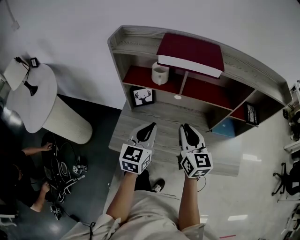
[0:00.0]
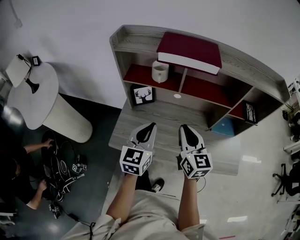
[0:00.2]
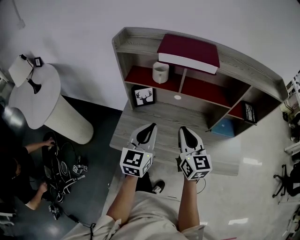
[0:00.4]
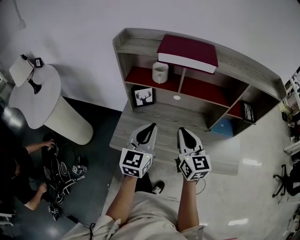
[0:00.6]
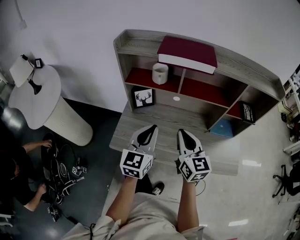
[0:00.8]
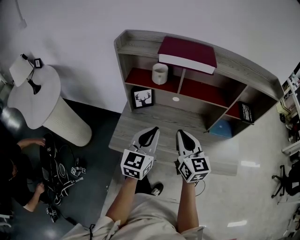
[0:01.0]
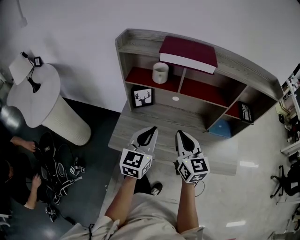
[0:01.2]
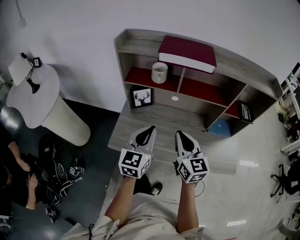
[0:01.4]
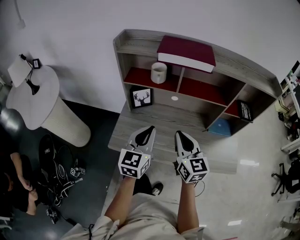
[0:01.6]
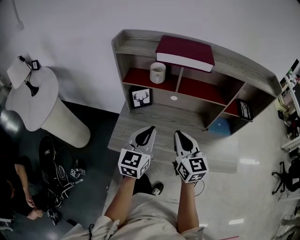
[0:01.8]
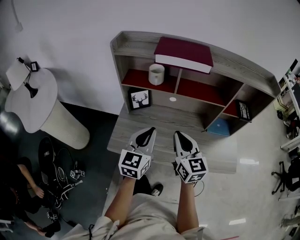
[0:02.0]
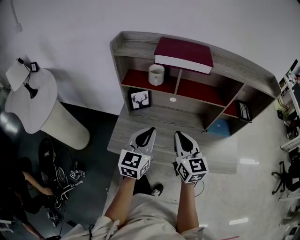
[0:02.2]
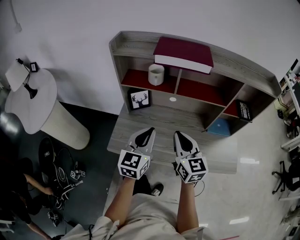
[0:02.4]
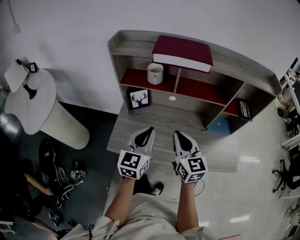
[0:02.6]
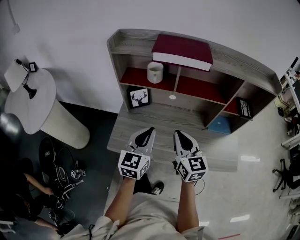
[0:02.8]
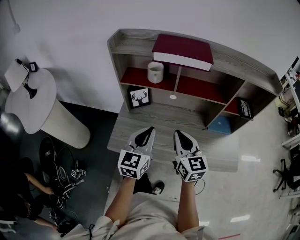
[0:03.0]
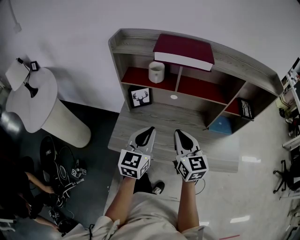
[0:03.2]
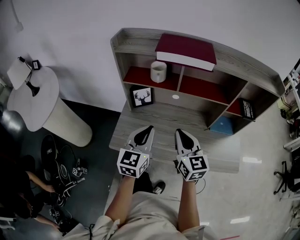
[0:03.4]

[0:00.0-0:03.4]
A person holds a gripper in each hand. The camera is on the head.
0:00.0 to 0:01.6: Both grippers move backward, some 5 cm.
0:01.6 to 0:03.4: The grippers move only a little.

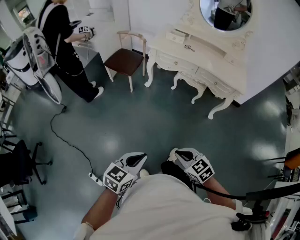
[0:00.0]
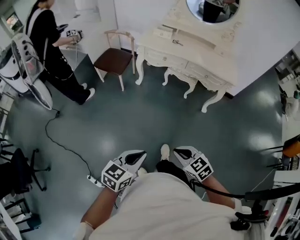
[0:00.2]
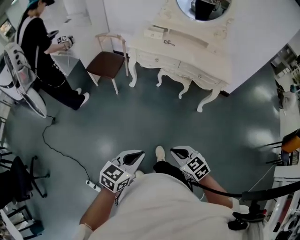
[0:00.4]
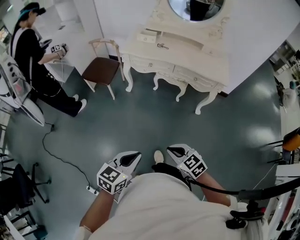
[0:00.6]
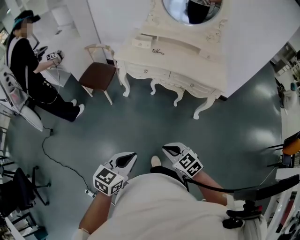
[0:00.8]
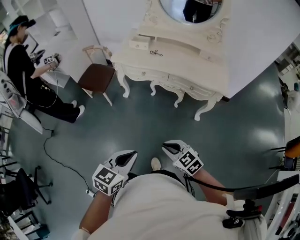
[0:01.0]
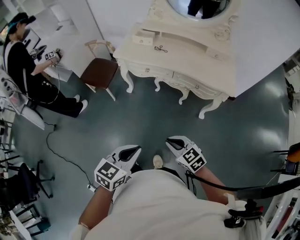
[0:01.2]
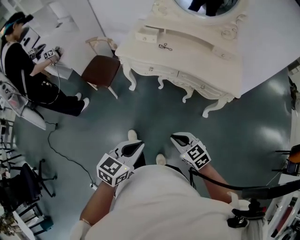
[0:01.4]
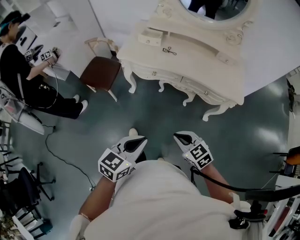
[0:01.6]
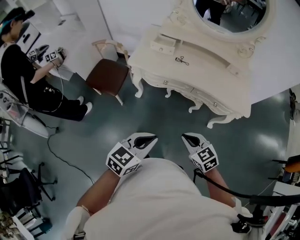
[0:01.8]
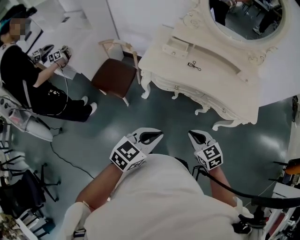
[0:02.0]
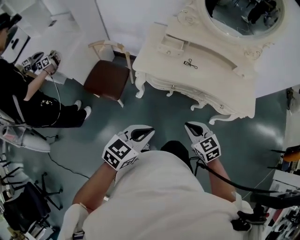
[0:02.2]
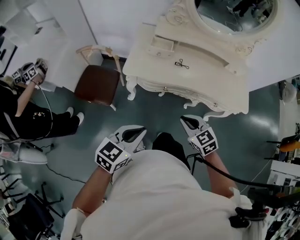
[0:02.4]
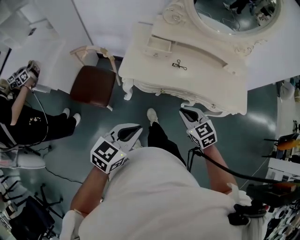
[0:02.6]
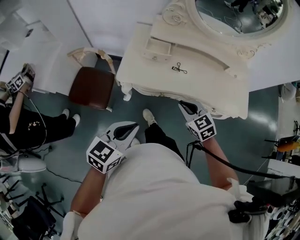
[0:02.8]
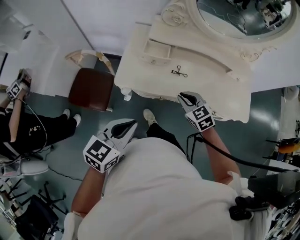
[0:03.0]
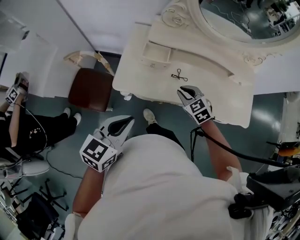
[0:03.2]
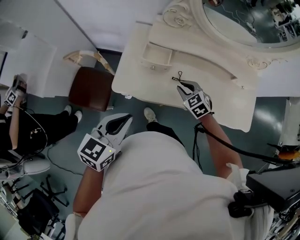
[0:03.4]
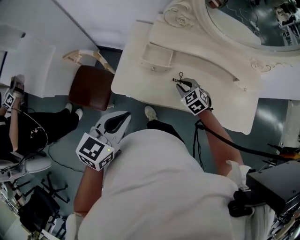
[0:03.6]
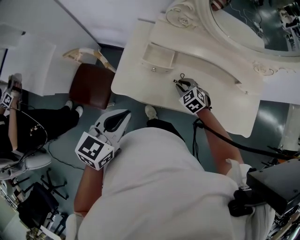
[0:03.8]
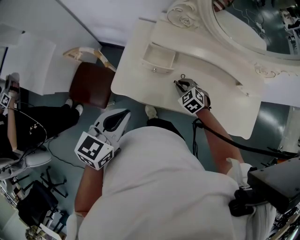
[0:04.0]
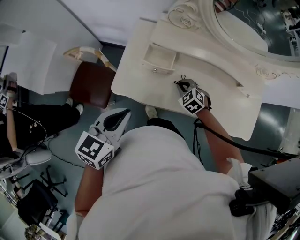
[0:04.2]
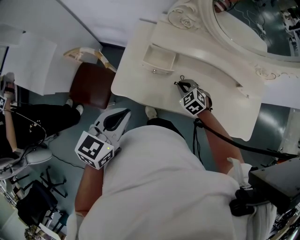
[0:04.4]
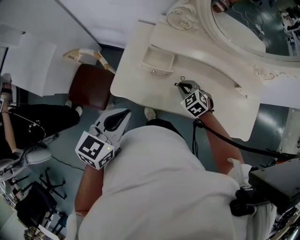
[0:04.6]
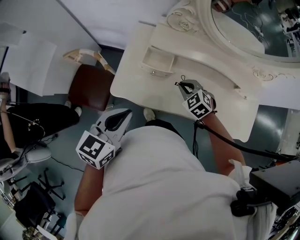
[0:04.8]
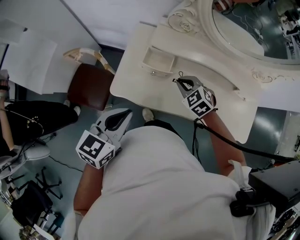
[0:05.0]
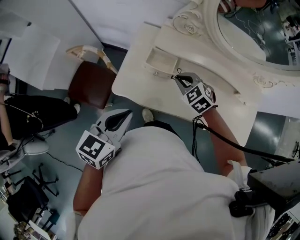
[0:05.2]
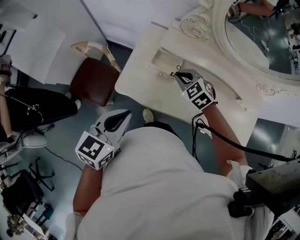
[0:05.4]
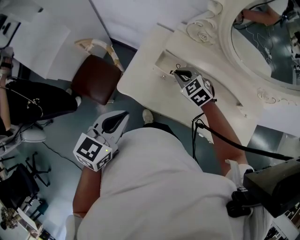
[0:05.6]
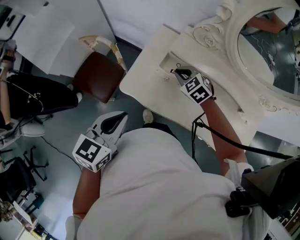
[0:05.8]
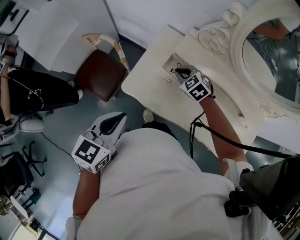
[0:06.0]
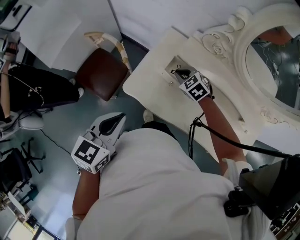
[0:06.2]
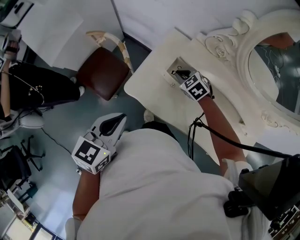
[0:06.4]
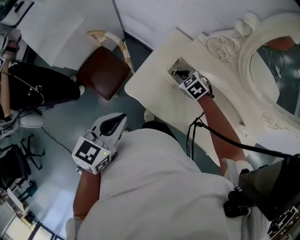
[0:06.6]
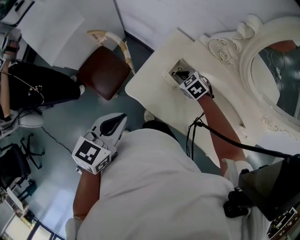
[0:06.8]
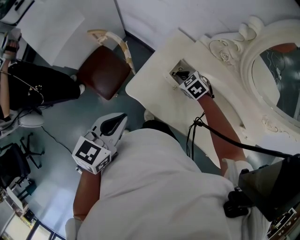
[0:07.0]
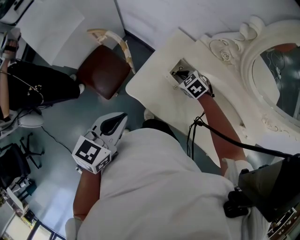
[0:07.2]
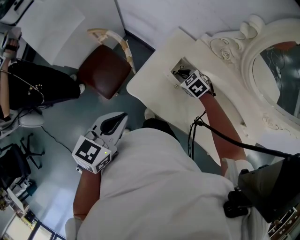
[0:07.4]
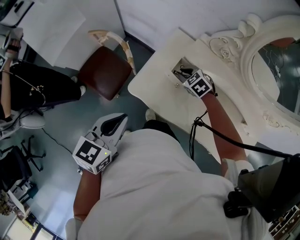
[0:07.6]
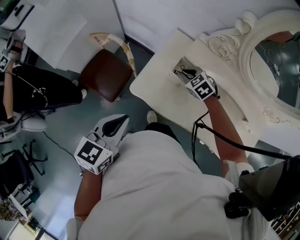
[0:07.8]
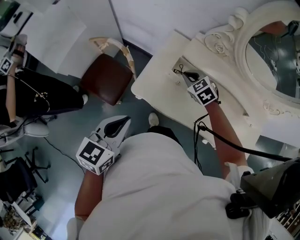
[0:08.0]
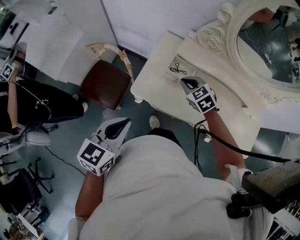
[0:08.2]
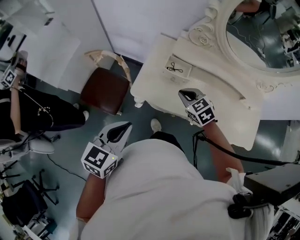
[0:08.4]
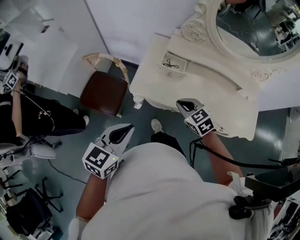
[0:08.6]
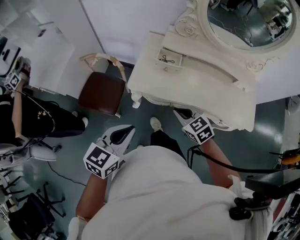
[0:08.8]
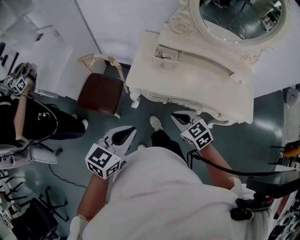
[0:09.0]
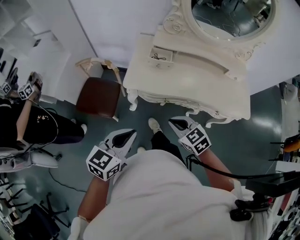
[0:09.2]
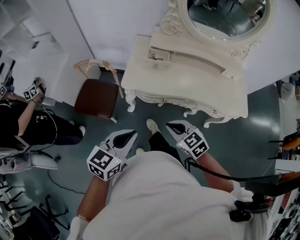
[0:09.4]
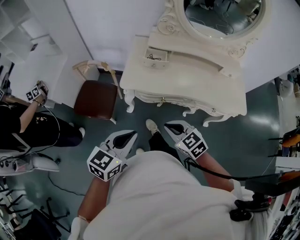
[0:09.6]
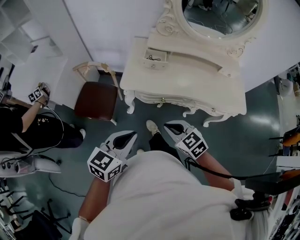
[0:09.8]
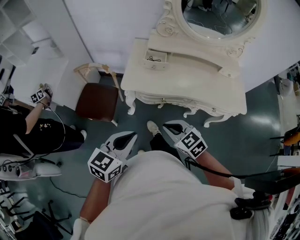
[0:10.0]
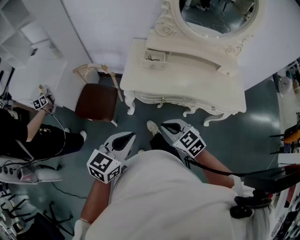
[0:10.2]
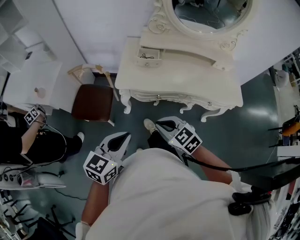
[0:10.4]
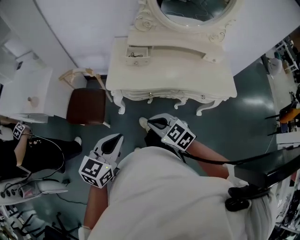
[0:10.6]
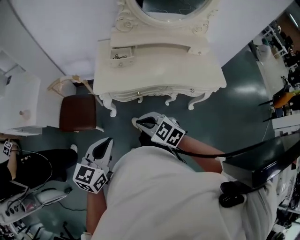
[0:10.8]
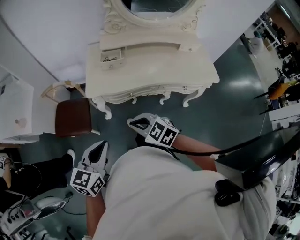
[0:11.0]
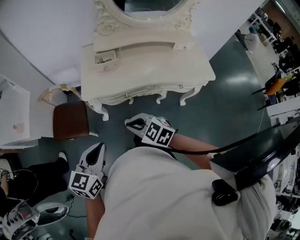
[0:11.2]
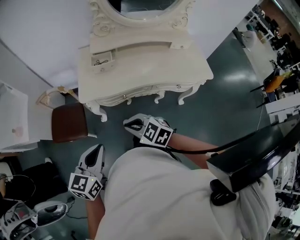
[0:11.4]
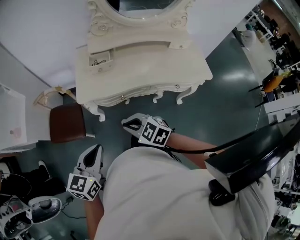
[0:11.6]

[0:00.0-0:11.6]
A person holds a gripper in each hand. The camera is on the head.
0:00.0 to 0:01.4: The grippers both shift forward and to the right by some 35 cm.
0:01.4 to 0:02.8: The pair of grippers is taken forward and to the left, roughly 40 cm.
0:02.8 to 0:04.4: The right gripper heads forward and downward, covering roughly 30 cm, and swivels about 30 degrees; the left gripper travels forward by approximately 20 cm.
0:04.4 to 0:05.8: The right gripper goes some 15 cm to the left, forward and upward.
0:05.8 to 0:07.2: The right gripper heads downward, covering approximately 10 cm.
0:07.2 to 0:08.8: The left gripper moves backward, some 20 cm, and changes its angle by about 20 degrees, while the right gripper shifts roughly 35 cm backward, and turns by roughly 30 degrees.
0:08.8 to 0:10.2: The right gripper travels backward by roughly 15 cm. Meanwhile the left gripper is displaced backward by some 10 cm.
0:10.2 to 0:11.6: There are only small adjustments of the grippers.

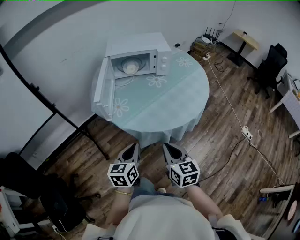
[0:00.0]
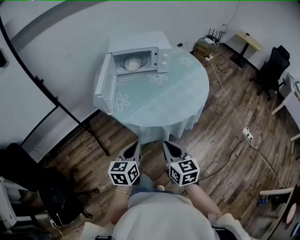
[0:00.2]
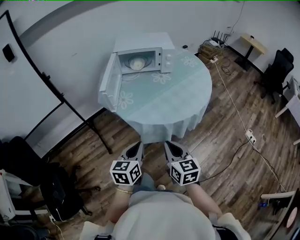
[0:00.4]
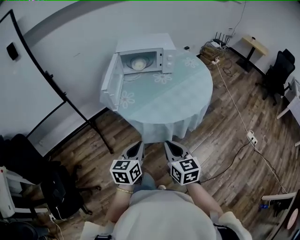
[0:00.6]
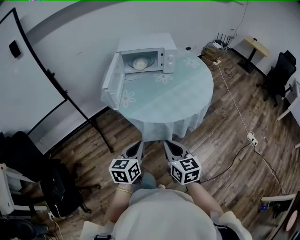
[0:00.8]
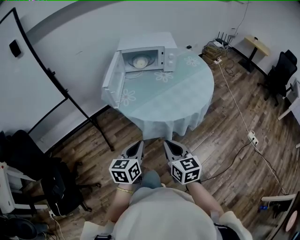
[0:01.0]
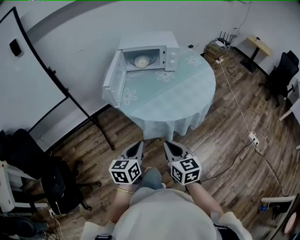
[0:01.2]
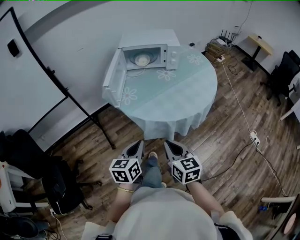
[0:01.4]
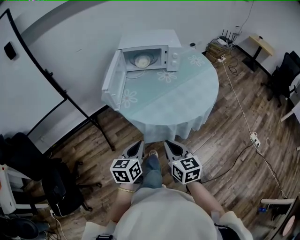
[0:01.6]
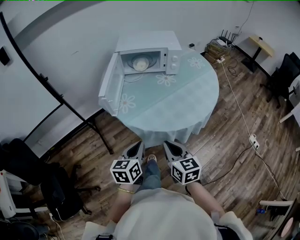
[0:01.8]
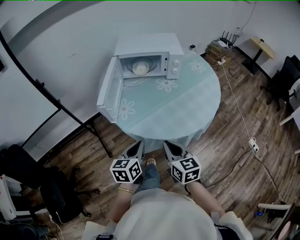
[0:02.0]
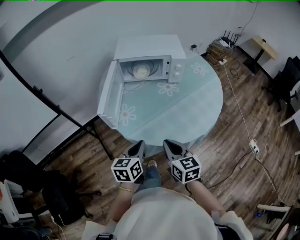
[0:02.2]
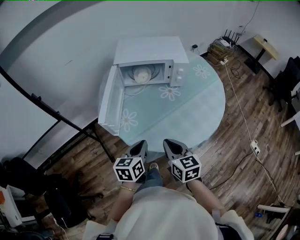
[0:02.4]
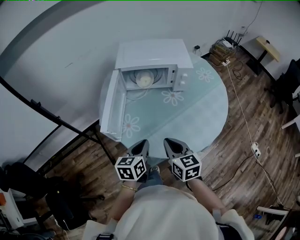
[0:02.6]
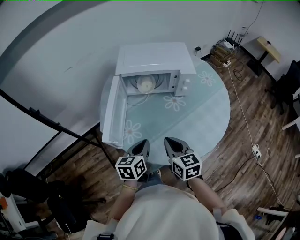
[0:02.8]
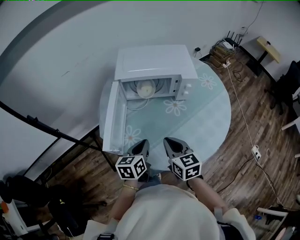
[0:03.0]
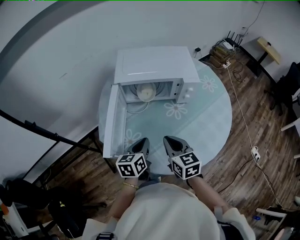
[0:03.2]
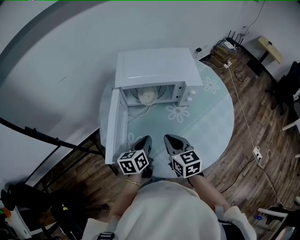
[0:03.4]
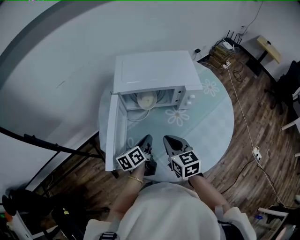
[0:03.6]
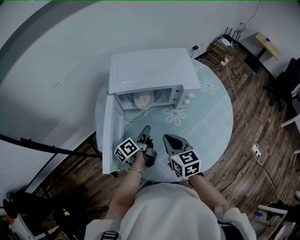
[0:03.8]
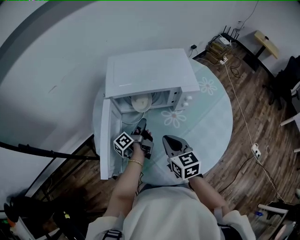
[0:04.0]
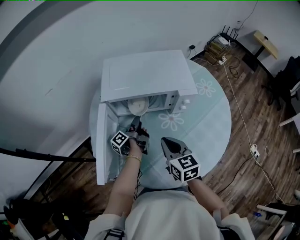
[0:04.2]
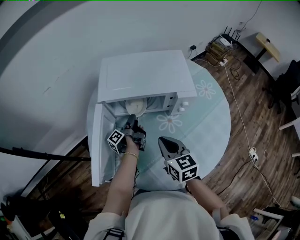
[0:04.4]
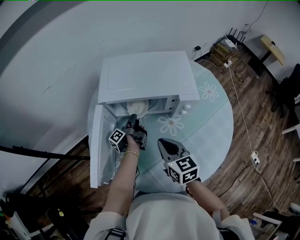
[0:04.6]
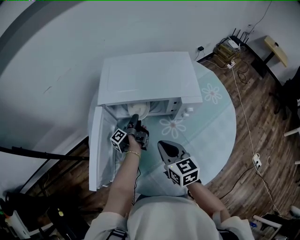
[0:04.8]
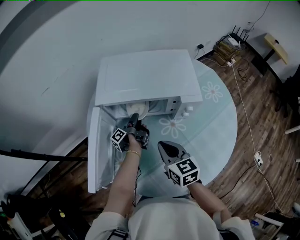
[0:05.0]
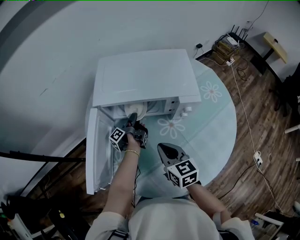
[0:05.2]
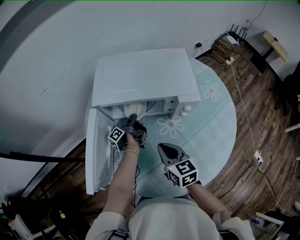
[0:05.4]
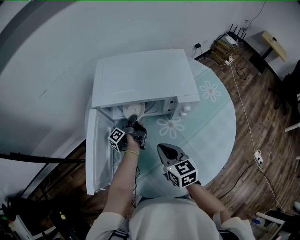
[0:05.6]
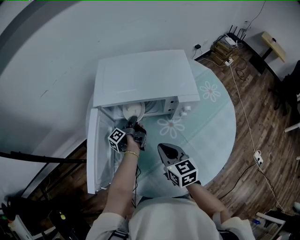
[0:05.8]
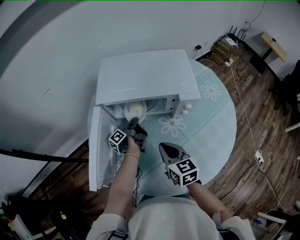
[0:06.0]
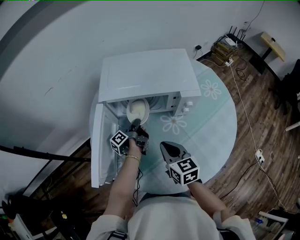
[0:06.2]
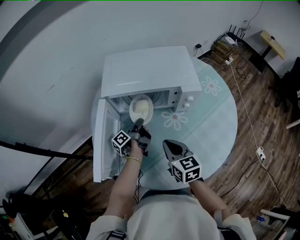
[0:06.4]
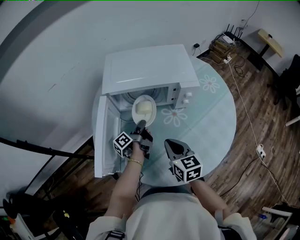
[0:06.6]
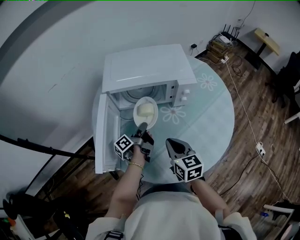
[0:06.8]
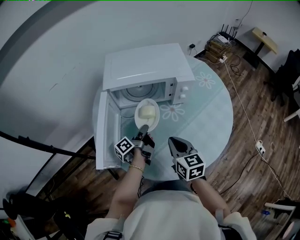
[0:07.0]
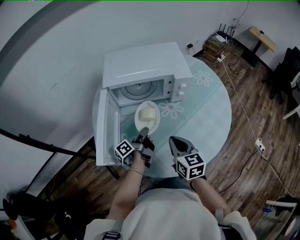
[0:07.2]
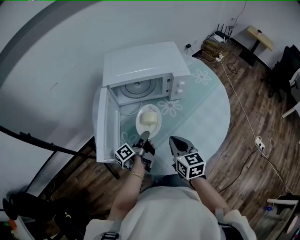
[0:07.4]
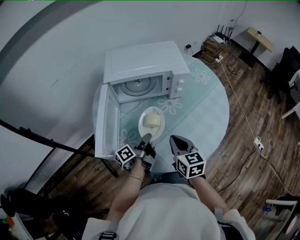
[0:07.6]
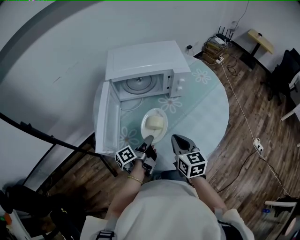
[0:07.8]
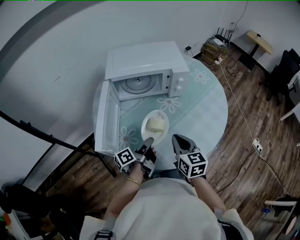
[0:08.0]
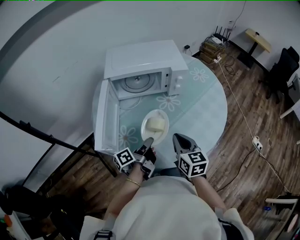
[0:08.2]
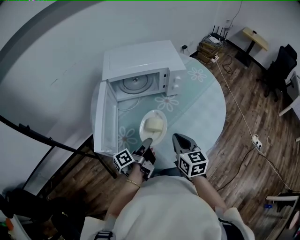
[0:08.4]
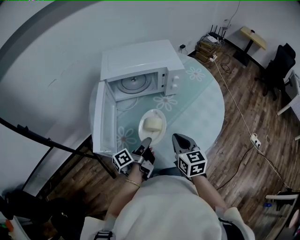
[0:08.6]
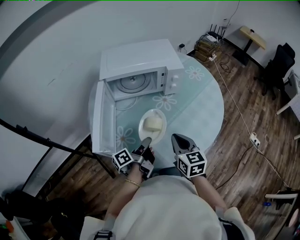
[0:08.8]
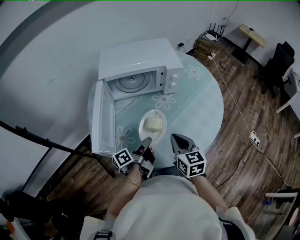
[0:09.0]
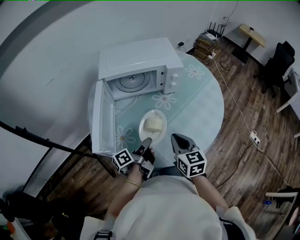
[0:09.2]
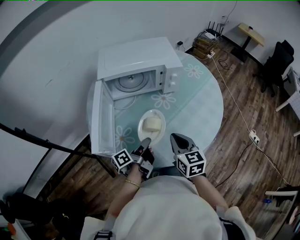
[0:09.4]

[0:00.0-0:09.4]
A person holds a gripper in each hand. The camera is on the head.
0:01.6 to 0:03.2: The right gripper ends up some 35 cm from where it was.
0:03.2 to 0:04.8: The right gripper moves roughly 15 cm.
0:06.2 to 0:07.8: The right gripper moves roughly 15 cm.
